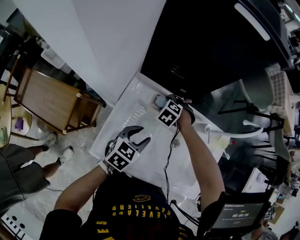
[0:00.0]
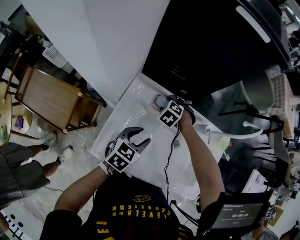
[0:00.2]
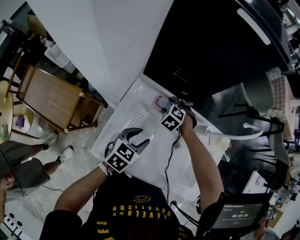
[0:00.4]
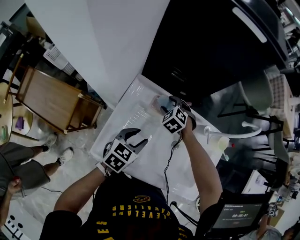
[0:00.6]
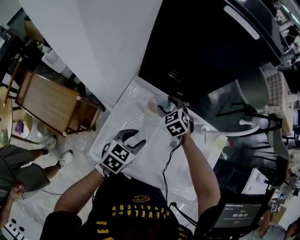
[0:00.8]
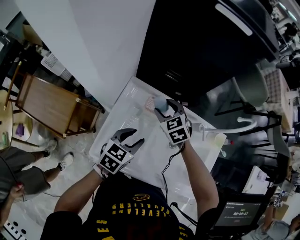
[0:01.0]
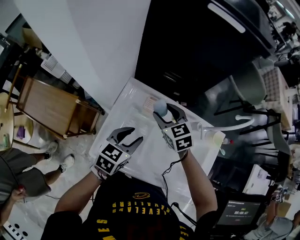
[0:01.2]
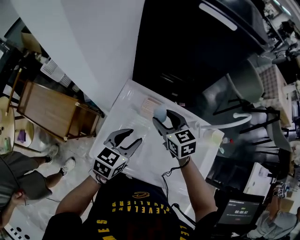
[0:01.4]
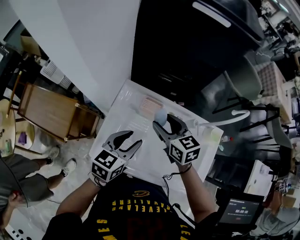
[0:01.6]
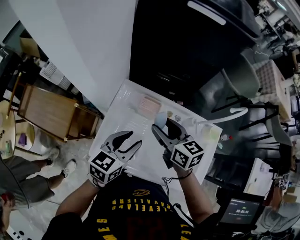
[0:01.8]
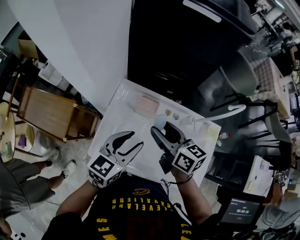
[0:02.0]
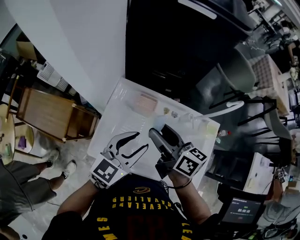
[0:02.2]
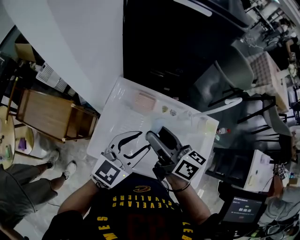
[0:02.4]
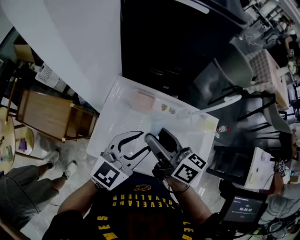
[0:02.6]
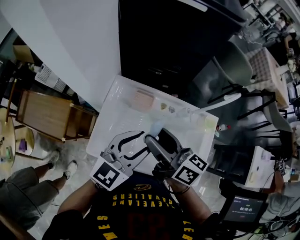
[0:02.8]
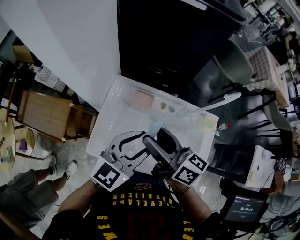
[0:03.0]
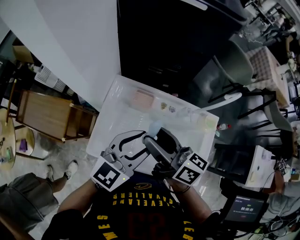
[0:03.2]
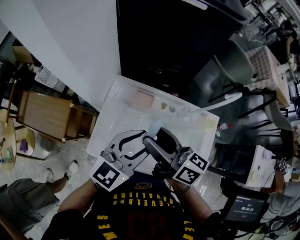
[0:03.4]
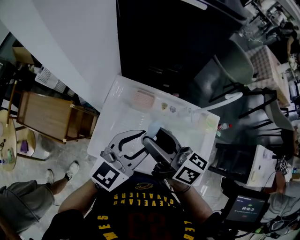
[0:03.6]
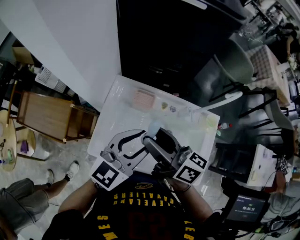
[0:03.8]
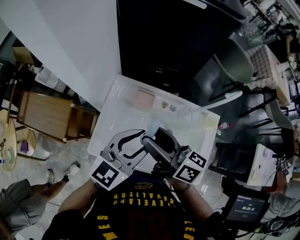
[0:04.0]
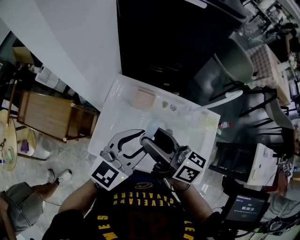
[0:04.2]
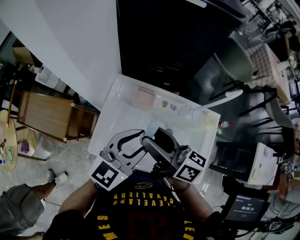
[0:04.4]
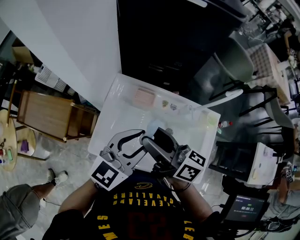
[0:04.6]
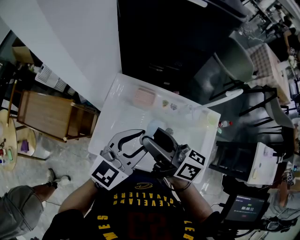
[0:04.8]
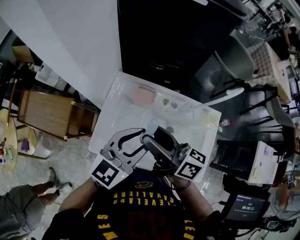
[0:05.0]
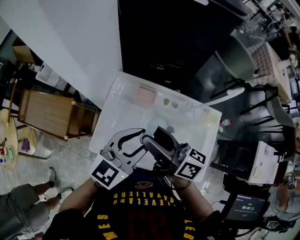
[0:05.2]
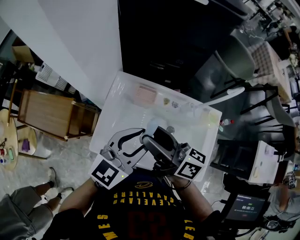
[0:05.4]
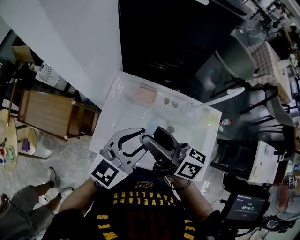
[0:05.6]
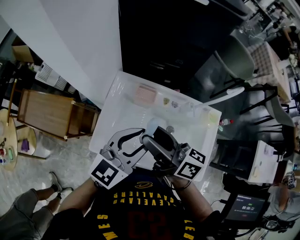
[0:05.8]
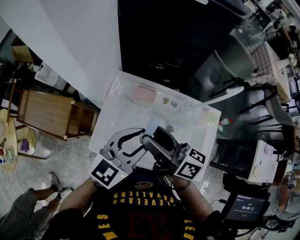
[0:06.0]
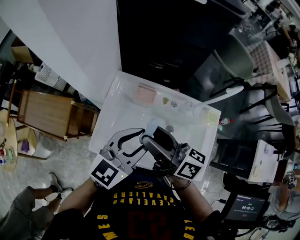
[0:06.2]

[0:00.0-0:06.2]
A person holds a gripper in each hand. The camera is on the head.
0:00.0 to 0:01.6: The left gripper goes some 10 cm upward; the right gripper goes about 20 cm upward, and tips its fingers upward by some 50 degrees.
0:01.6 to 0:03.2: The right gripper travels upward and backward by roughly 15 cm, and turns by some 40 degrees. The left gripper is displaced upward and to the right by some 15 cm, and swivels approximately 30 degrees.
0:03.2 to 0:04.6: The grippers stay close to where they were, moving slightly.
0:04.6 to 0:06.2: Both grippers stay about where they are.

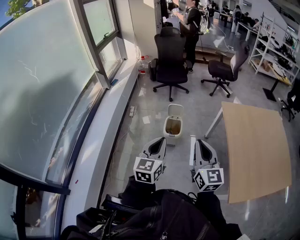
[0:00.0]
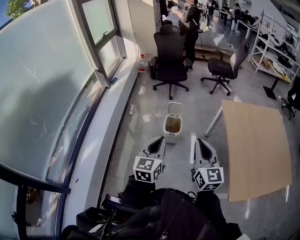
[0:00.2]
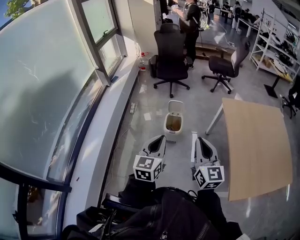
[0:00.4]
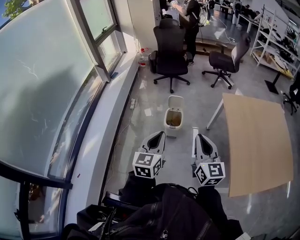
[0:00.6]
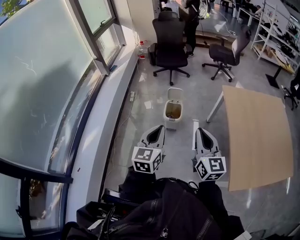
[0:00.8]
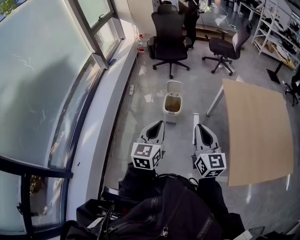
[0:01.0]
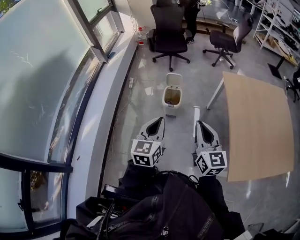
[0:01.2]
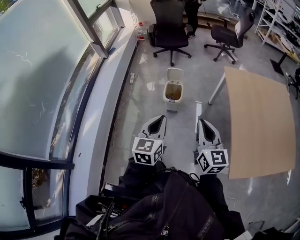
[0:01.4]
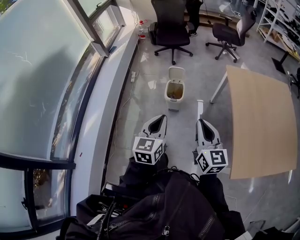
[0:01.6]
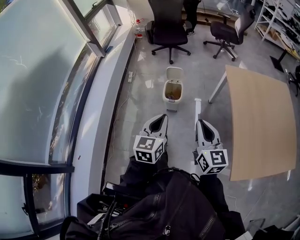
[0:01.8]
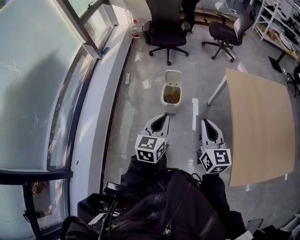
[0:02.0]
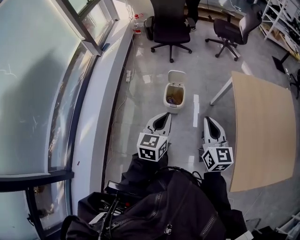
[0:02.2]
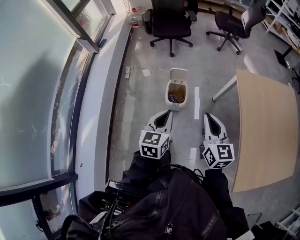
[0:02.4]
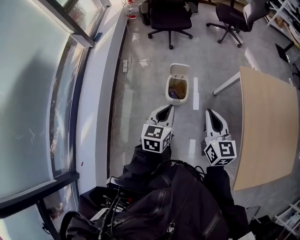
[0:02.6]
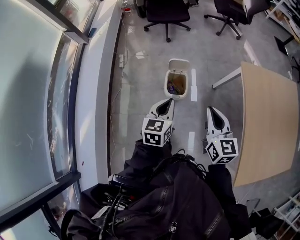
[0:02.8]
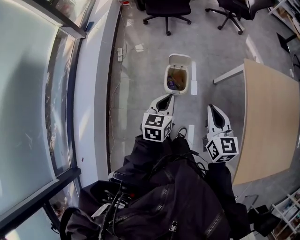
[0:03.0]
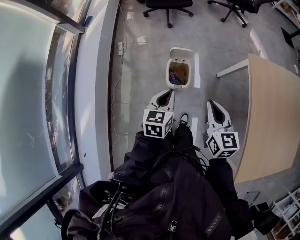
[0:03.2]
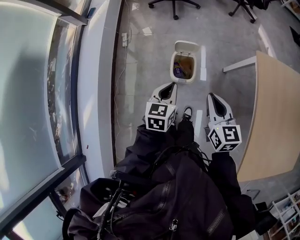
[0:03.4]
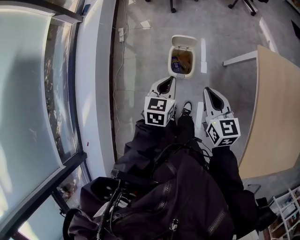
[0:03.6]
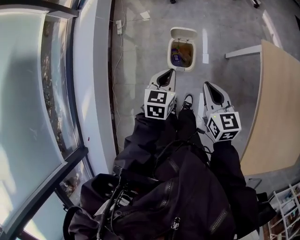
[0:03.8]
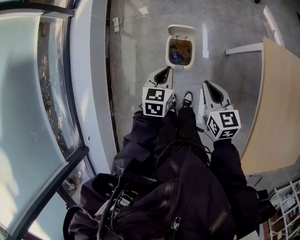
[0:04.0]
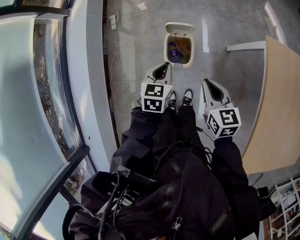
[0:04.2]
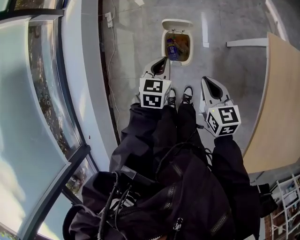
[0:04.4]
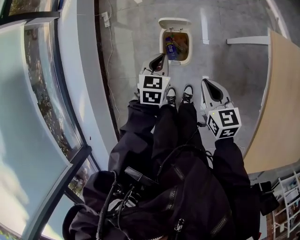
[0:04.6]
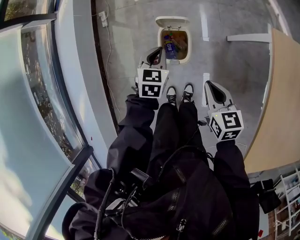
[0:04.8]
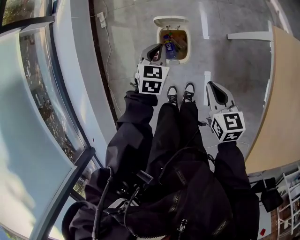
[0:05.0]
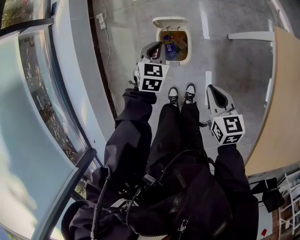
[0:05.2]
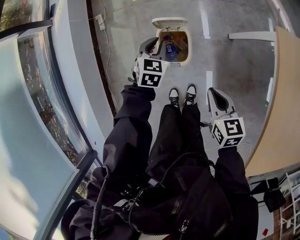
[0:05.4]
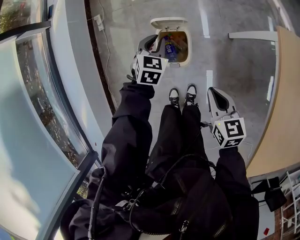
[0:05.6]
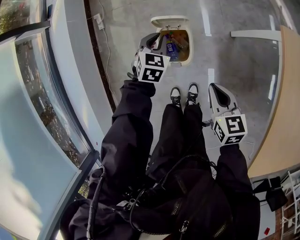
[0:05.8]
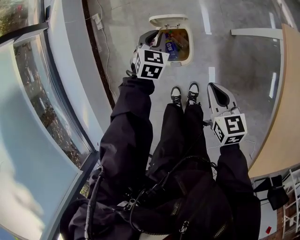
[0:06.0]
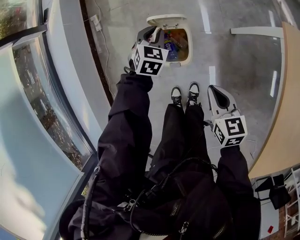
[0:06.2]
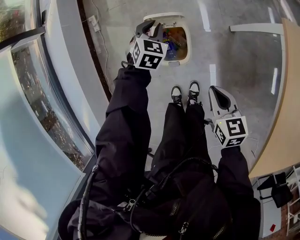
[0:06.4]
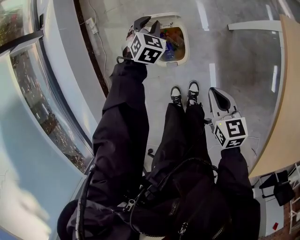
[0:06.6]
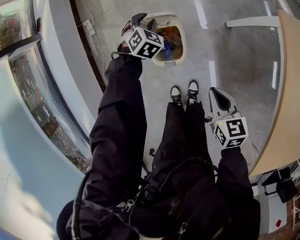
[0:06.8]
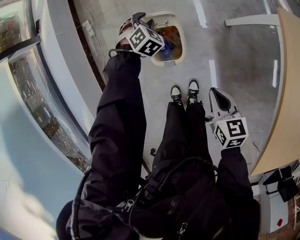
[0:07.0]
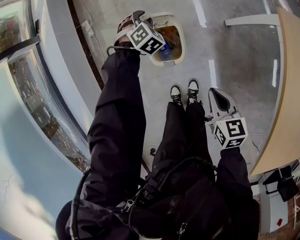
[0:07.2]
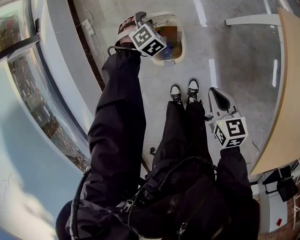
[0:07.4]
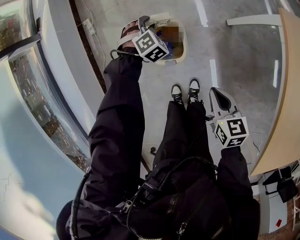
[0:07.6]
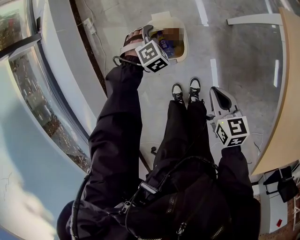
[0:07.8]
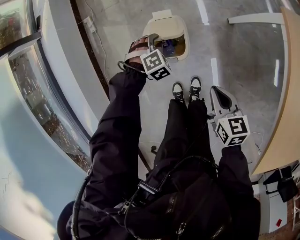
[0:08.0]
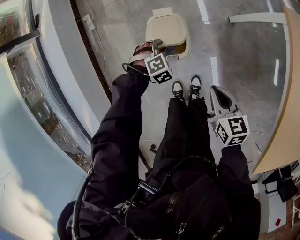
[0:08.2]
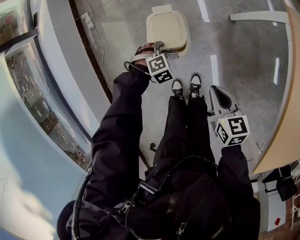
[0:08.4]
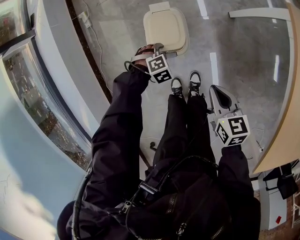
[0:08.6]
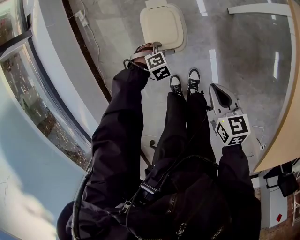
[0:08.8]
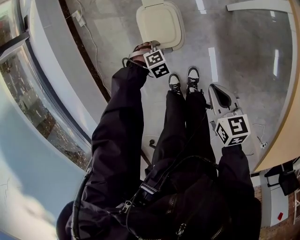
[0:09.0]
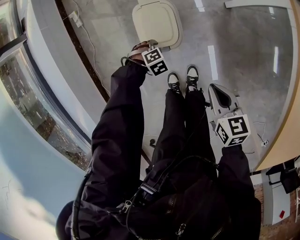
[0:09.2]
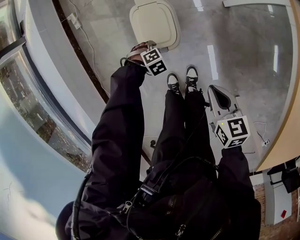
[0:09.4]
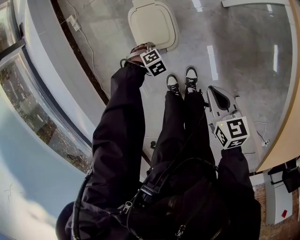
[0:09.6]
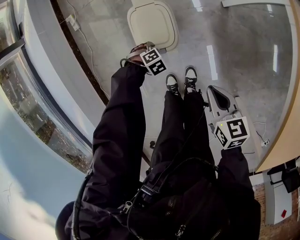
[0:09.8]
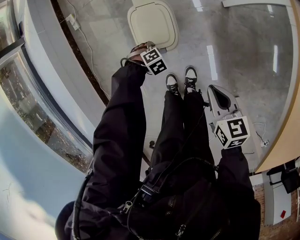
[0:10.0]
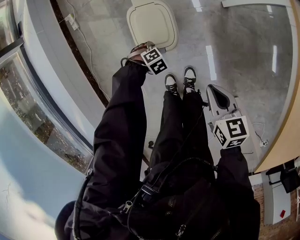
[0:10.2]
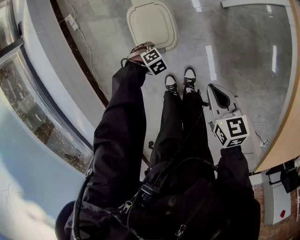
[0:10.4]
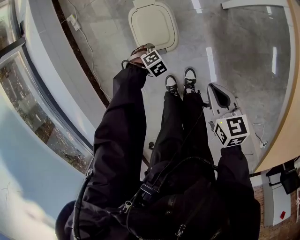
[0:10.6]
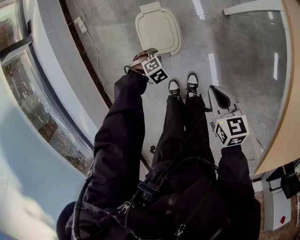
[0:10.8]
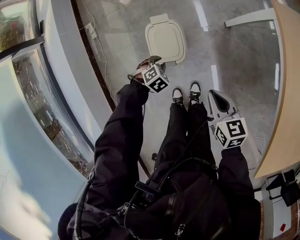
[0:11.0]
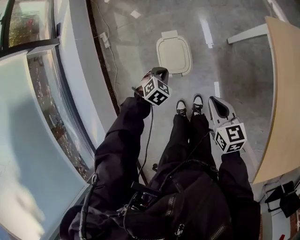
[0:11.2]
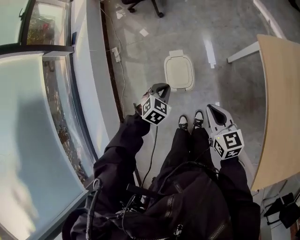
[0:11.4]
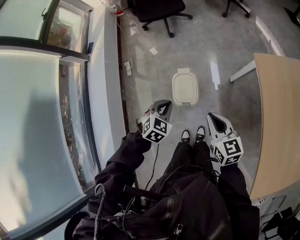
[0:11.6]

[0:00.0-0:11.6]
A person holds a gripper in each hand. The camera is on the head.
0:00.0 to 0:01.4: The left gripper is displaced to the right by approximately 5 cm. The right gripper goes some 10 cm to the right and downward.
0:01.4 to 0:02.8: The two grippers go about 30 cm forward.
0:02.8 to 0:04.4: Both grippers move downward and forward, roughly 25 cm. The right gripper changes its angle by roughly 20 degrees.
0:04.4 to 0:05.8: The left gripper goes approximately 20 cm downward and forward, and changes its angle by some 20 degrees. The right gripper moves downward, approximately 10 cm.
0:05.8 to 0:07.2: The left gripper heads downward and forward, covering some 10 cm, and rotates roughly 40 degrees. Meanwhile the right gripper shifts about 5 cm downward.
0:07.2 to 0:08.8: The right gripper moves some 5 cm; the left gripper ends up roughly 25 cm from where it was, and turns by about 30 degrees.
0:08.8 to 0:10.2: The left gripper heads downward, covering about 10 cm.
0:10.2 to 0:11.6: The right gripper moves upward, approximately 30 cm, and turns by approximately 30 degrees; the left gripper travels upward by roughly 50 cm, tilts its fingers some 40 degrees upward, and closes its fingers.

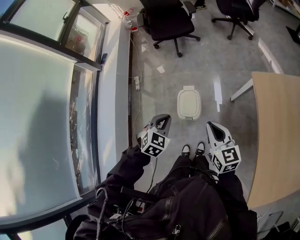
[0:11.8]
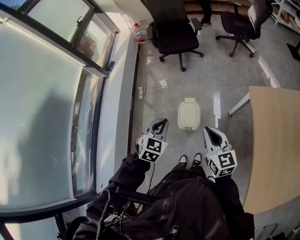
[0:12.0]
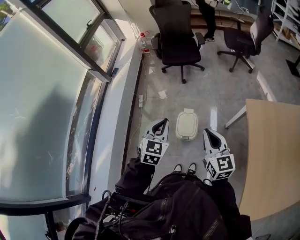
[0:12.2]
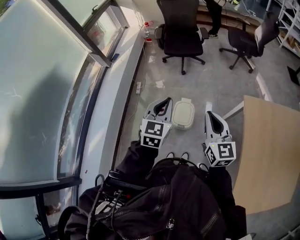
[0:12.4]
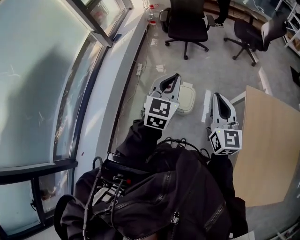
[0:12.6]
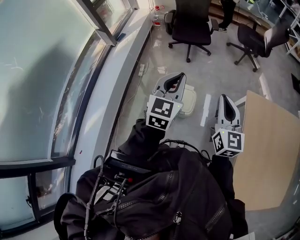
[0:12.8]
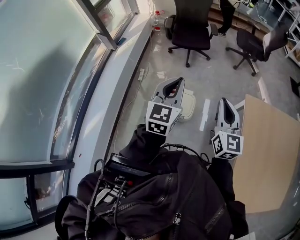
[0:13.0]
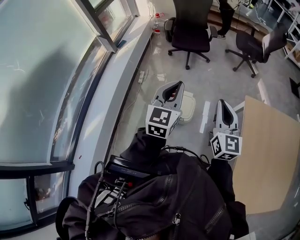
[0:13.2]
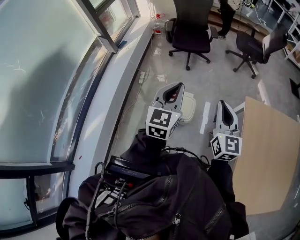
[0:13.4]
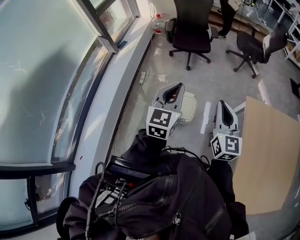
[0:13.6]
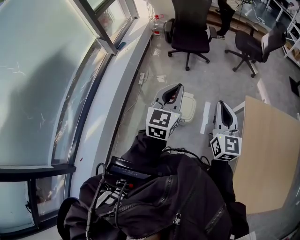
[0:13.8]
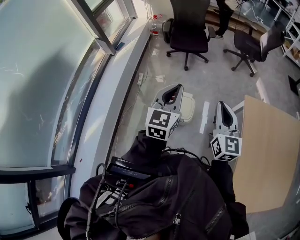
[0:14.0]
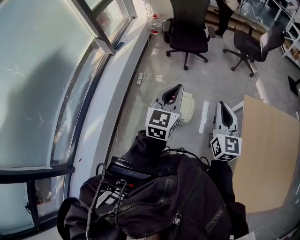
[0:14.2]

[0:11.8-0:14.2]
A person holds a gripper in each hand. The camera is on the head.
0:11.8 to 0:13.0: The two grippers go approximately 25 cm upward. The left gripper tilts its fingers roughly 40 degrees upward, while the right gripper changes its angle by about 20 degrees.
0:13.0 to 0:14.2: There are only small adjustments of the grippers.

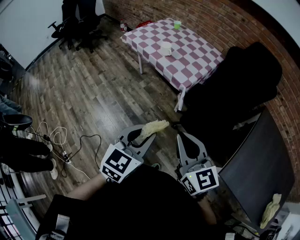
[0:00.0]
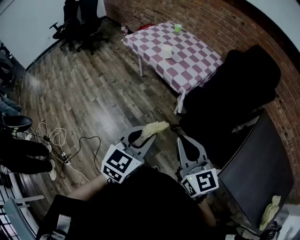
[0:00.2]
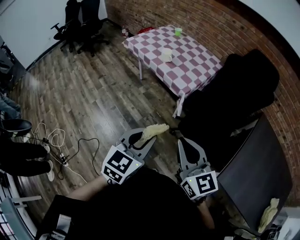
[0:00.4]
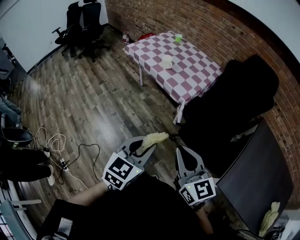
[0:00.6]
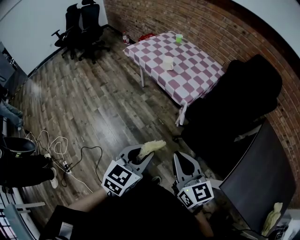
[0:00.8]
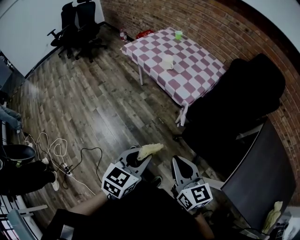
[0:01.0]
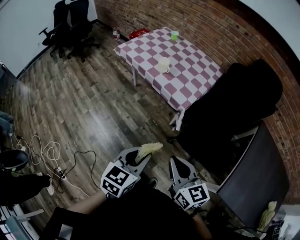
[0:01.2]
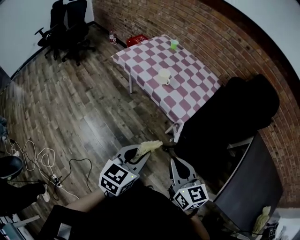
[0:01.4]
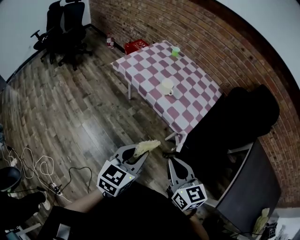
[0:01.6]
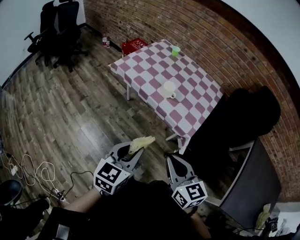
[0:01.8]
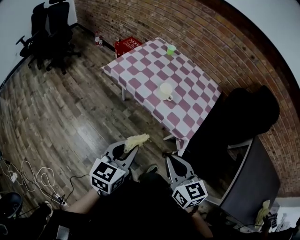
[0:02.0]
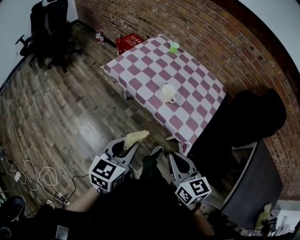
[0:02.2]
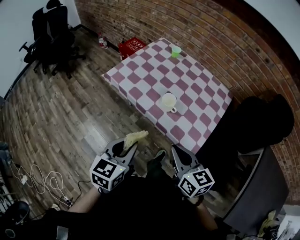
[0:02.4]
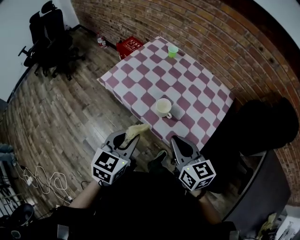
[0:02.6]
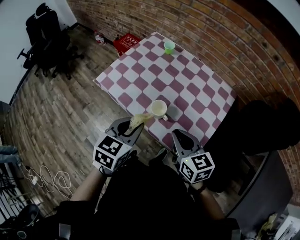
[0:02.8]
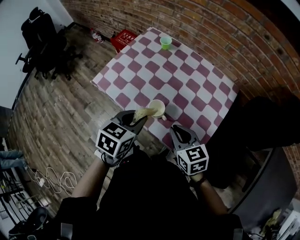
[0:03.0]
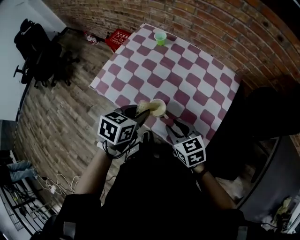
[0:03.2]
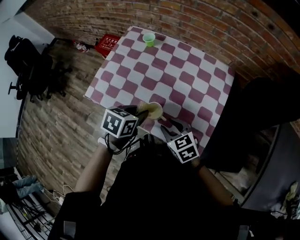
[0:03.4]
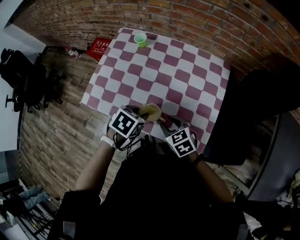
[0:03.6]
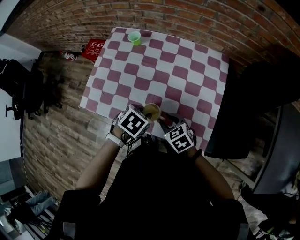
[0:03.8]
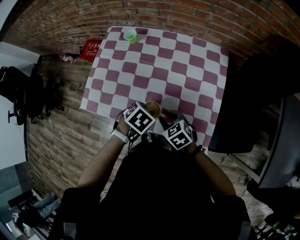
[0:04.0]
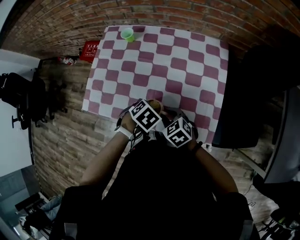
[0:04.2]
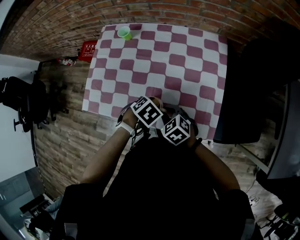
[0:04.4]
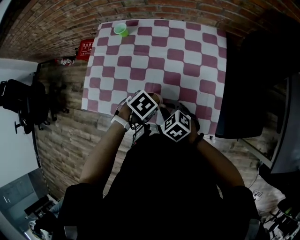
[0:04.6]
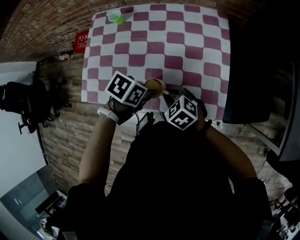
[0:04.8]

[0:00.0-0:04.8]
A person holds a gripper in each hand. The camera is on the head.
0:00.0 to 0:01.6: The grippers both shift forward and to the left by about 25 cm.
0:01.6 to 0:03.2: The two grippers travel together, forward, some 50 cm. The left gripper rotates about 30 degrees.
0:03.2 to 0:04.8: The grippers both shift downward by approximately 10 cm. The left gripper swivels roughly 50 degrees.
